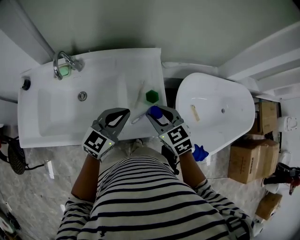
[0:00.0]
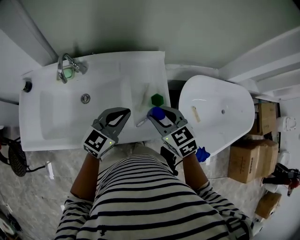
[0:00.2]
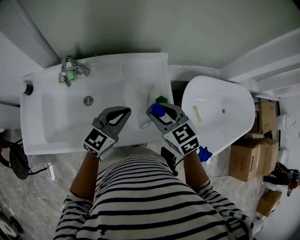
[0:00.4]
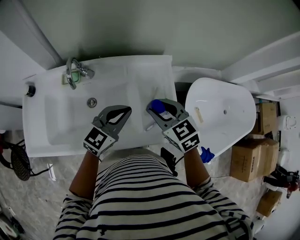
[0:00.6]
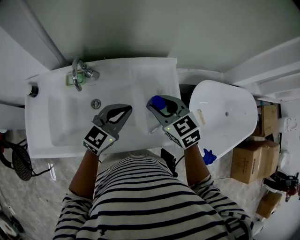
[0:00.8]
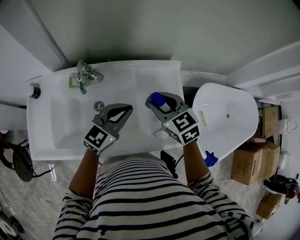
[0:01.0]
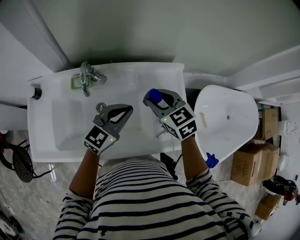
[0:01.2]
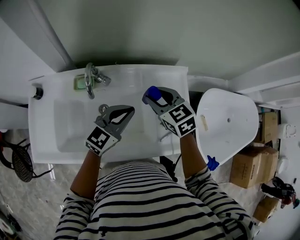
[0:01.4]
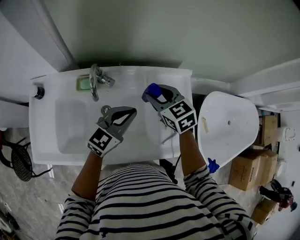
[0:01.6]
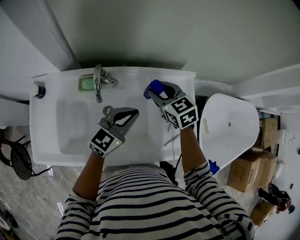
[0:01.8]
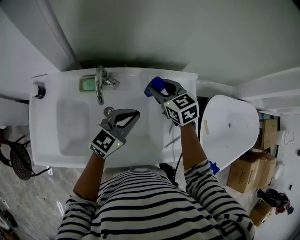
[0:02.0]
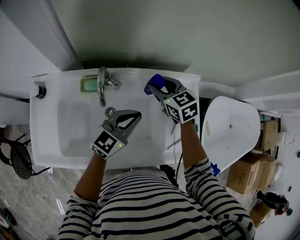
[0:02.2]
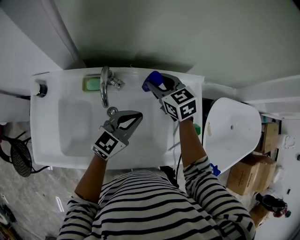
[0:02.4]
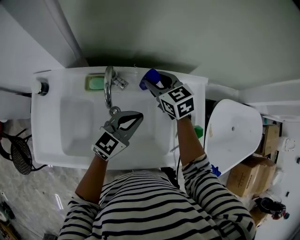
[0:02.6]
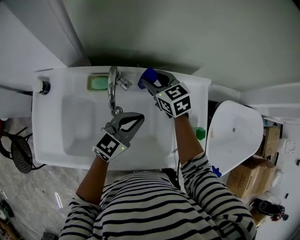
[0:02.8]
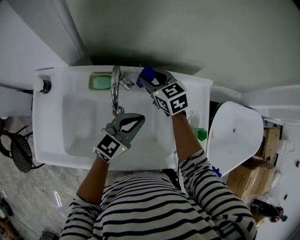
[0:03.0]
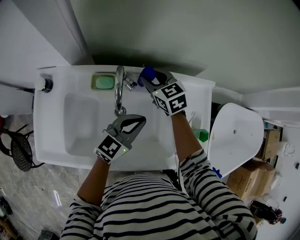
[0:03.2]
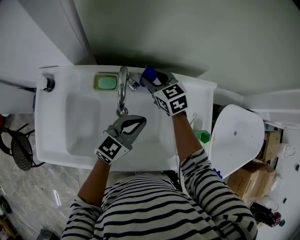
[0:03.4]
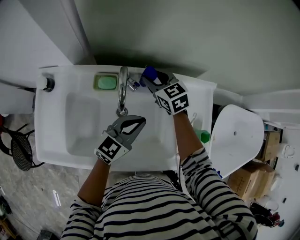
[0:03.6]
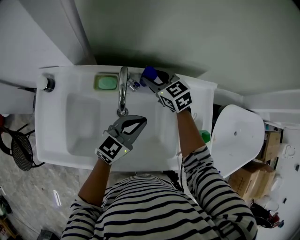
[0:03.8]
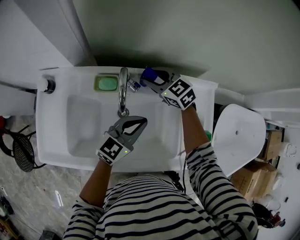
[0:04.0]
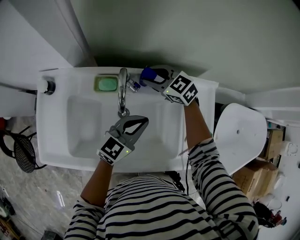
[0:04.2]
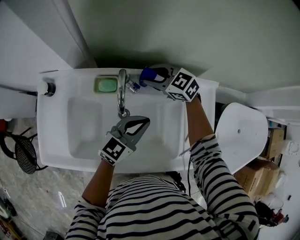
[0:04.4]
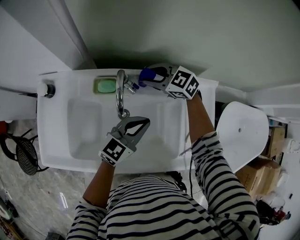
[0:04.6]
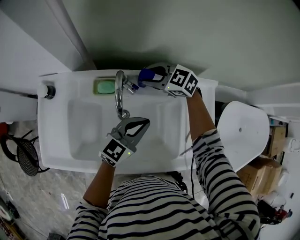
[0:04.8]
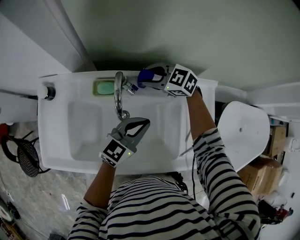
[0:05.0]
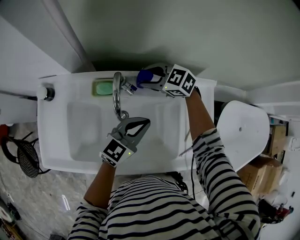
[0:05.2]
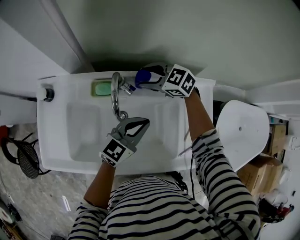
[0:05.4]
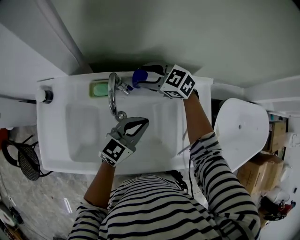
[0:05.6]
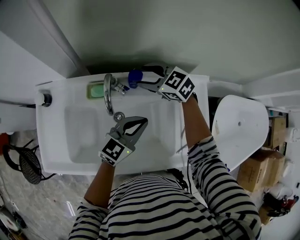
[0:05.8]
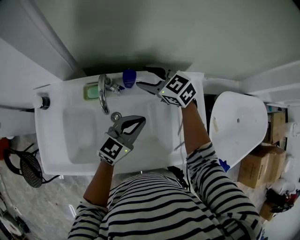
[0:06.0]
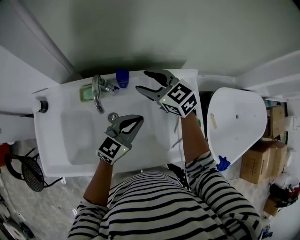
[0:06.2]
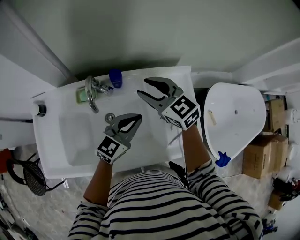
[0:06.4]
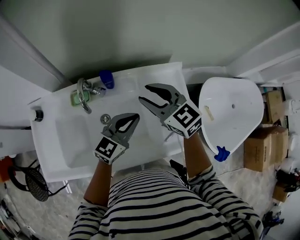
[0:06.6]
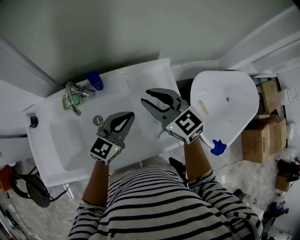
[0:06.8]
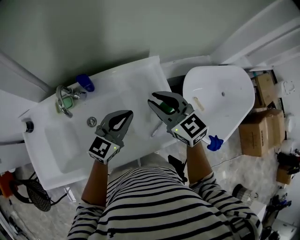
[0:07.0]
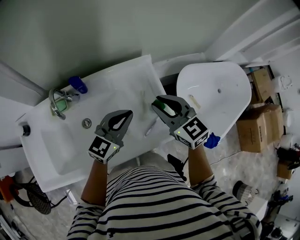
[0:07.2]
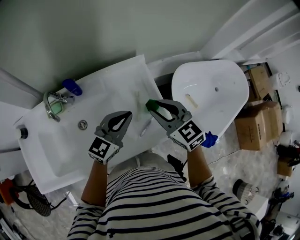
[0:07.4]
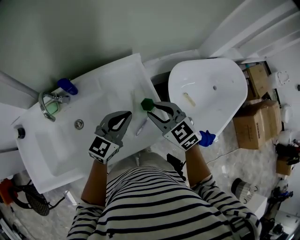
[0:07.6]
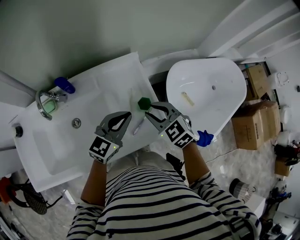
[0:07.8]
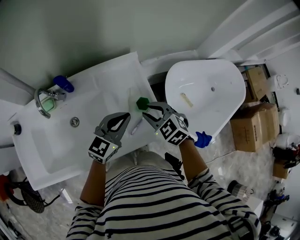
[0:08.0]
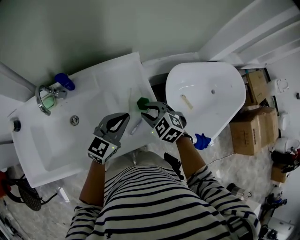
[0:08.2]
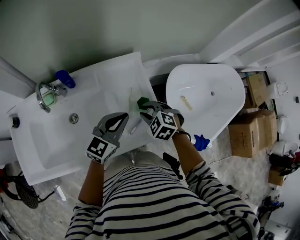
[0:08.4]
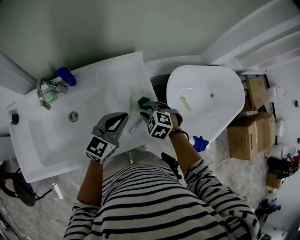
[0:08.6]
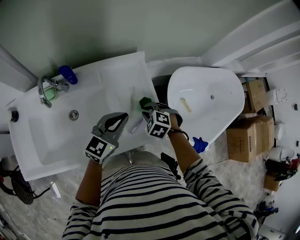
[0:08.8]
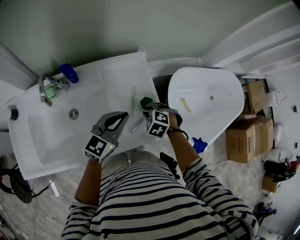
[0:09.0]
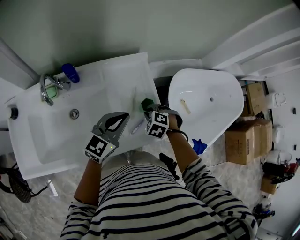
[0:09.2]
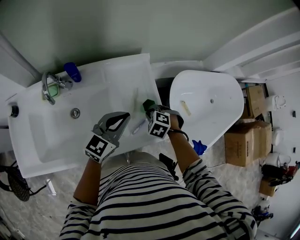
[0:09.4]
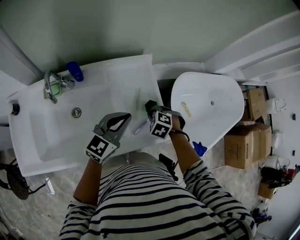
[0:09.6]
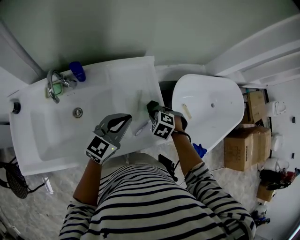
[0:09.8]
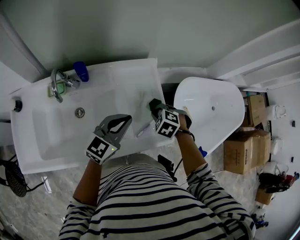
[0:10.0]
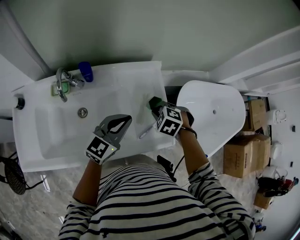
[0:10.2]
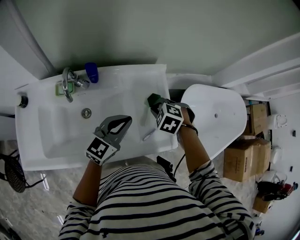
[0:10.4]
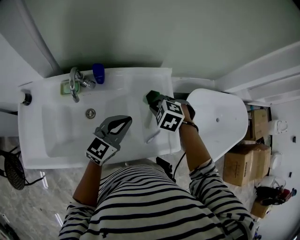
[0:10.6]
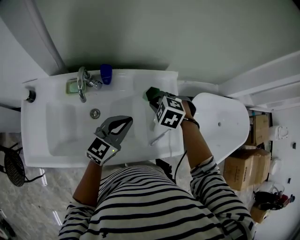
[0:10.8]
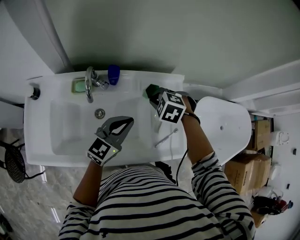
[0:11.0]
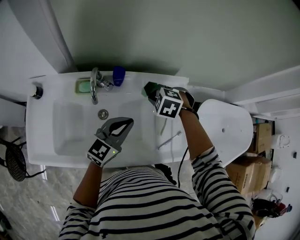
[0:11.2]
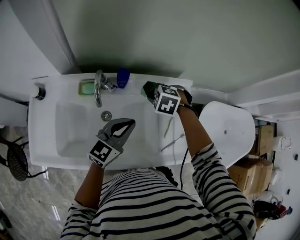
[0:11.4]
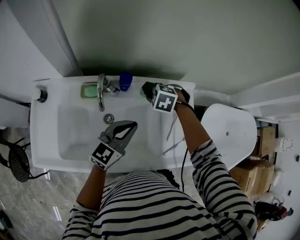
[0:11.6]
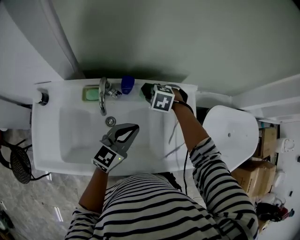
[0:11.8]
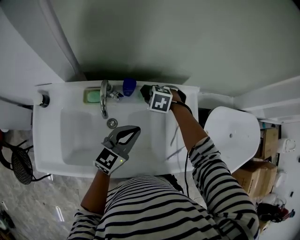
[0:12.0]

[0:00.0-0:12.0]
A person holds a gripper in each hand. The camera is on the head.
0:00.0 to 0:01.6: The grippers both shift to the left and forward by about 25 cm.
0:01.6 to 0:03.0: The left gripper moves roughly 5 cm, while the right gripper shifts approximately 15 cm to the left, forward and downward.
0:03.0 to 0:04.4: The right gripper turns by roughly 30 degrees.
0:04.4 to 0:06.0: The right gripper heads upward, covering roughly 5 cm, and opens its fingers.
0:06.0 to 0:07.6: The right gripper heads to the right and backward, covering roughly 35 cm, changes its angle by roughly 30 degrees, and closes its fingers. Meanwhile the left gripper moves to the right, some 20 cm.
0:07.6 to 0:09.0: The right gripper moves downward, approximately 15 cm, and tips its fingers downward by about 40 degrees.
0:09.0 to 0:10.4: The right gripper is displaced upward by approximately 10 cm. The left gripper changes place by about 5 cm.
0:10.4 to 0:12.0: The left gripper shifts by some 10 cm; the right gripper ends up roughly 25 cm from where it was.

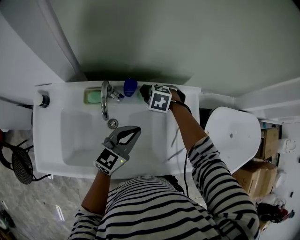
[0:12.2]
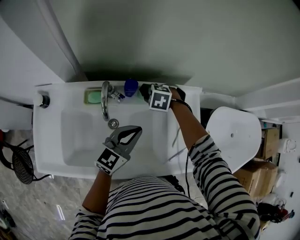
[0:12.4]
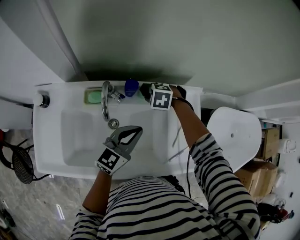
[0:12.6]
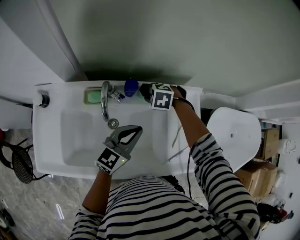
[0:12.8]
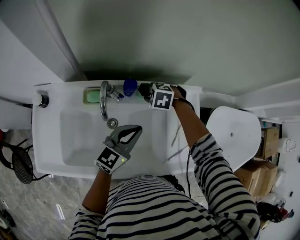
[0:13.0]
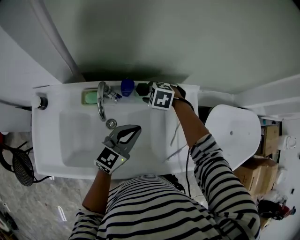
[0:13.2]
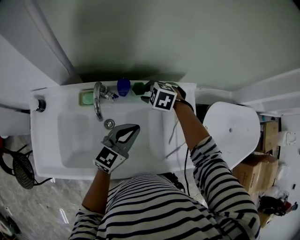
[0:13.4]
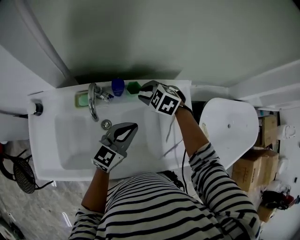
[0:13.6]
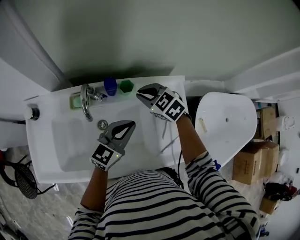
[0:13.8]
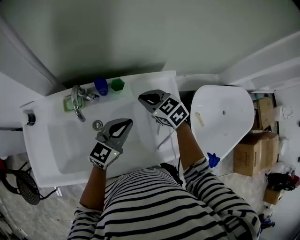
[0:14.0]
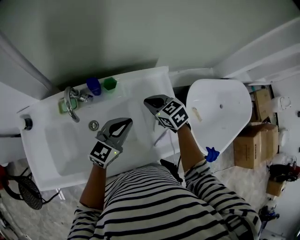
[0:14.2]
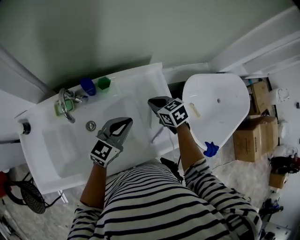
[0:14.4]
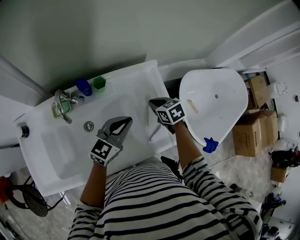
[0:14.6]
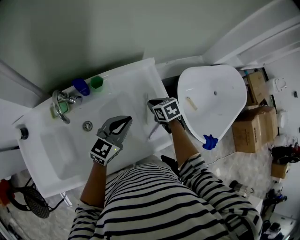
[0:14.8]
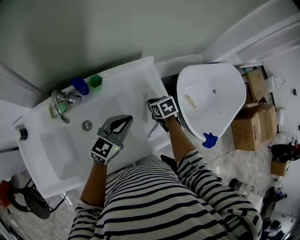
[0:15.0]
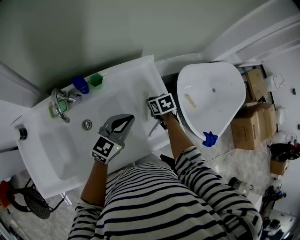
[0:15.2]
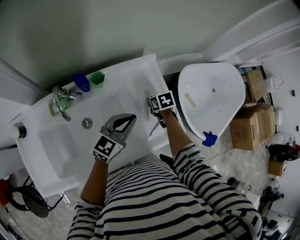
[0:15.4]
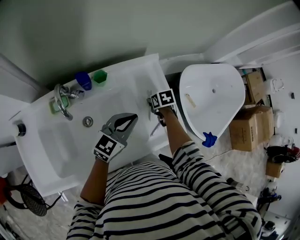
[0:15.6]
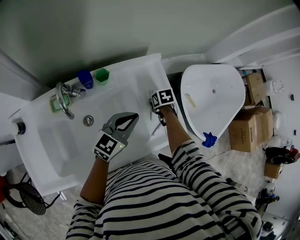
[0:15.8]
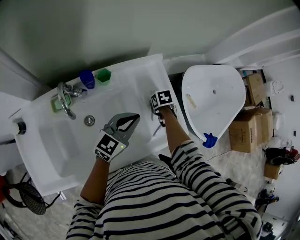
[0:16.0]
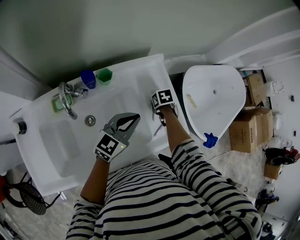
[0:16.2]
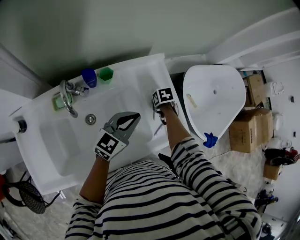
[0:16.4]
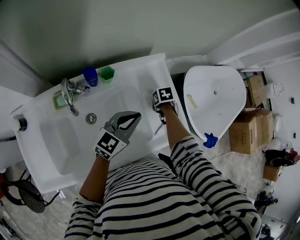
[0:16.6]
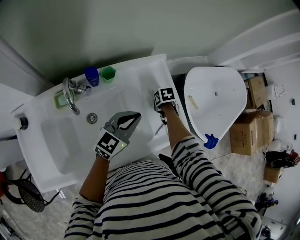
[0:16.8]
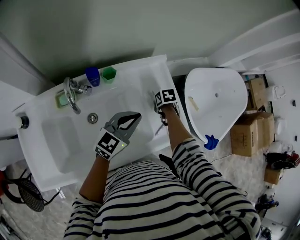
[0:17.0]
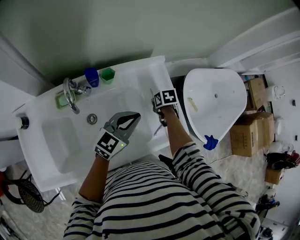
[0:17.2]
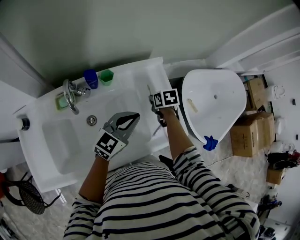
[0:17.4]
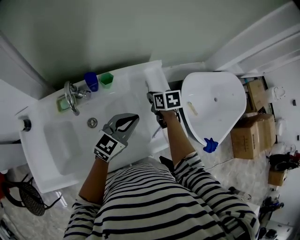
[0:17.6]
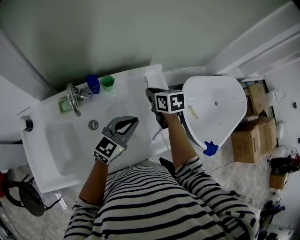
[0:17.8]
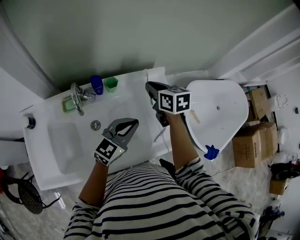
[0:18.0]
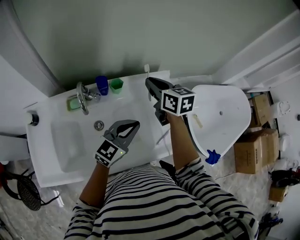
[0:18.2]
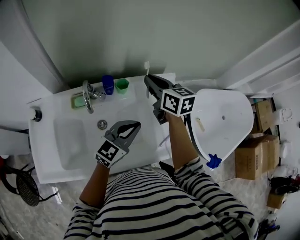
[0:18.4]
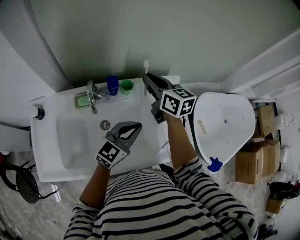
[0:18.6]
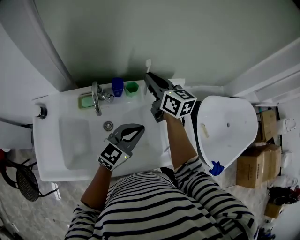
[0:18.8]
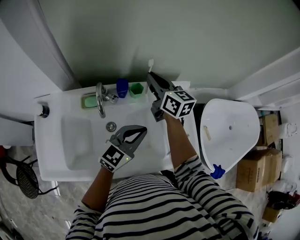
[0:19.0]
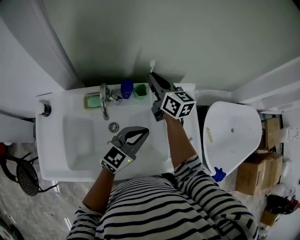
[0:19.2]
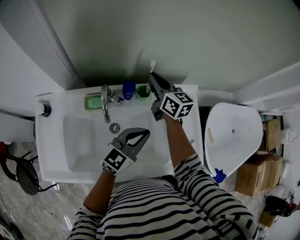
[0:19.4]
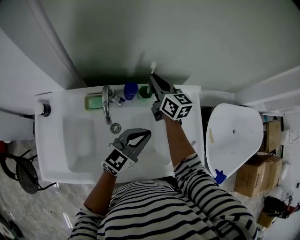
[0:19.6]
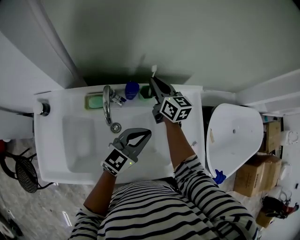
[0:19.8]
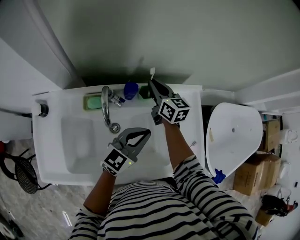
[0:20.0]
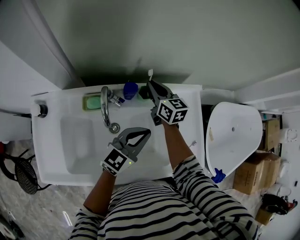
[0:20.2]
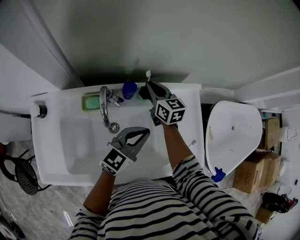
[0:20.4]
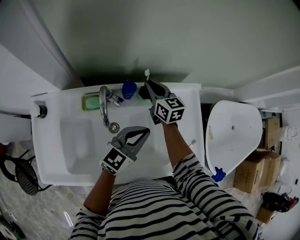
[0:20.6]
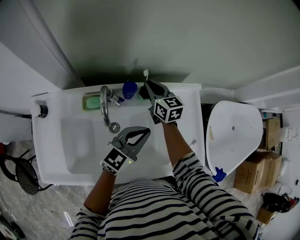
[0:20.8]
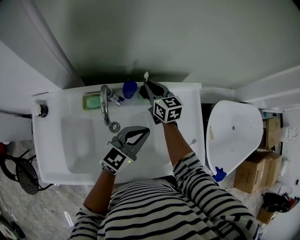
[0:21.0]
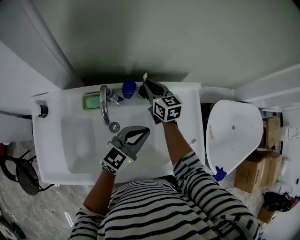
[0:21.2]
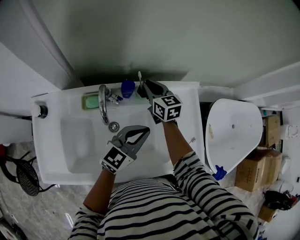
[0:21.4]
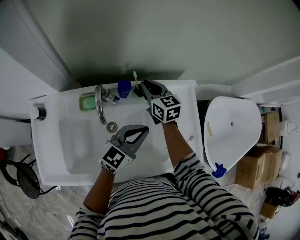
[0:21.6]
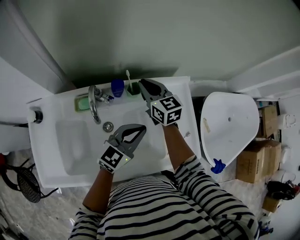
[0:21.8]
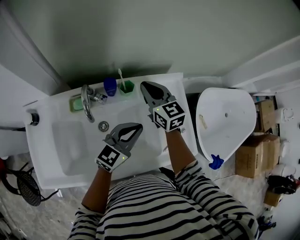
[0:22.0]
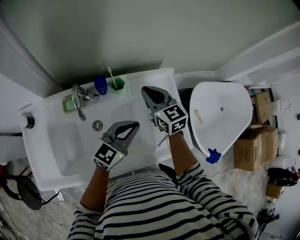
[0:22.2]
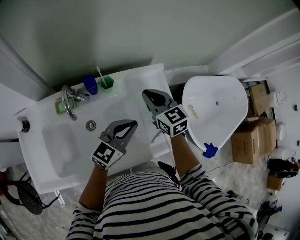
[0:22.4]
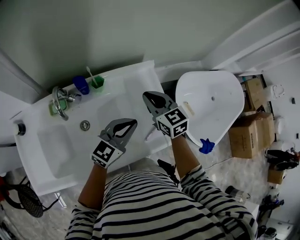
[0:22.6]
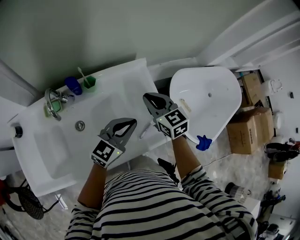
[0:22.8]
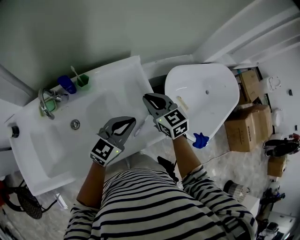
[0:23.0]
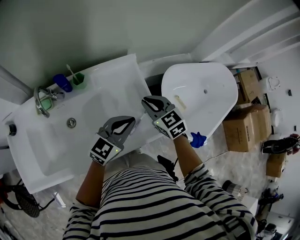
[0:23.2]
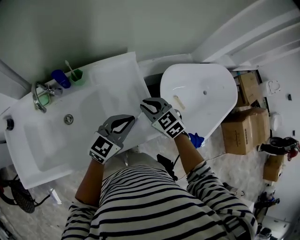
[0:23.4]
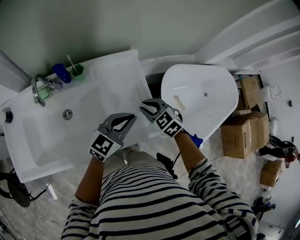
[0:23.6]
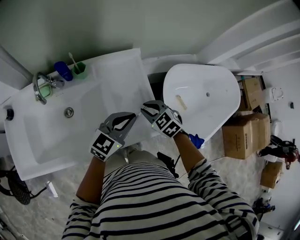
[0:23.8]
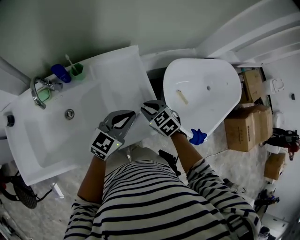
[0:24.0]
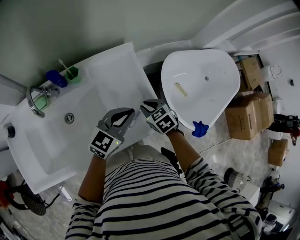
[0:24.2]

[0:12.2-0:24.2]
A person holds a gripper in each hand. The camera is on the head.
0:12.2 to 0:13.8: The right gripper is displaced upward by roughly 10 cm, and swivels roughly 40 degrees.
0:13.8 to 0:15.2: The right gripper moves to the right and downward, about 25 cm, and rolls clockwise, seen from behind, by some 50 degrees. The left gripper is displaced to the right by some 10 cm.
0:15.2 to 0:16.6: The right gripper ends up some 5 cm from where it was.
0:16.6 to 0:18.2: The right gripper is displaced upward by approximately 30 cm, and points its fingers approximately 50 degrees further upward.
0:18.2 to 0:19.8: The left gripper moves to the left, some 5 cm; the right gripper travels to the left, downward and forward by about 15 cm.
0:19.8 to 0:21.2: The grippers make only small movements.
0:21.2 to 0:22.6: The left gripper shifts about 10 cm to the right. The right gripper heads to the right and backward, covering some 25 cm.
0:22.6 to 0:24.2: The right gripper goes roughly 20 cm downward, to the right and backward, and points its fingers some 30 degrees further downward, while the left gripper goes approximately 10 cm to the right.
